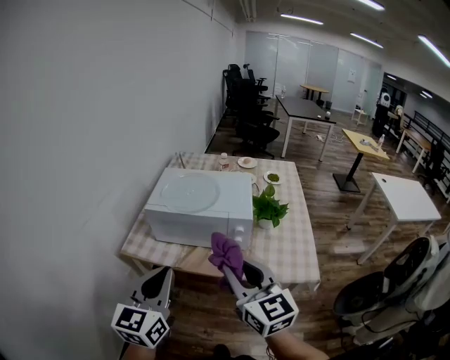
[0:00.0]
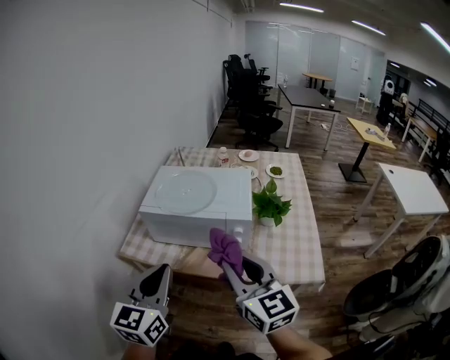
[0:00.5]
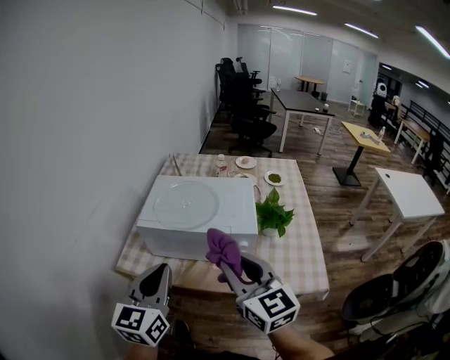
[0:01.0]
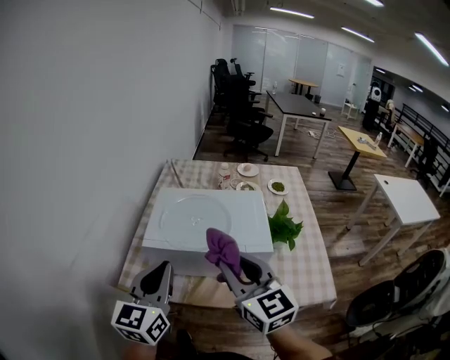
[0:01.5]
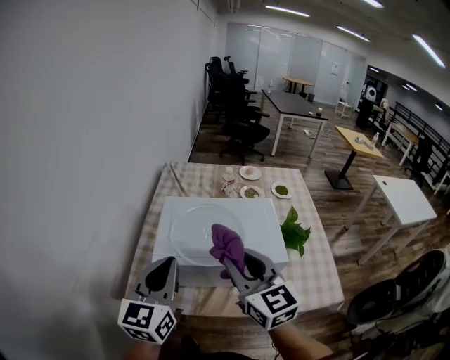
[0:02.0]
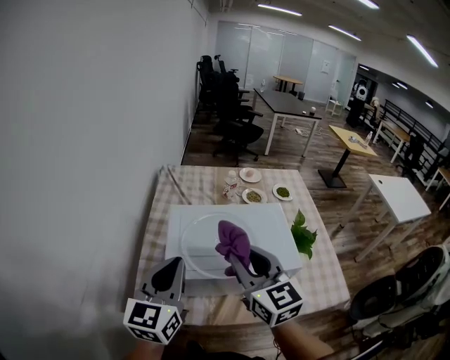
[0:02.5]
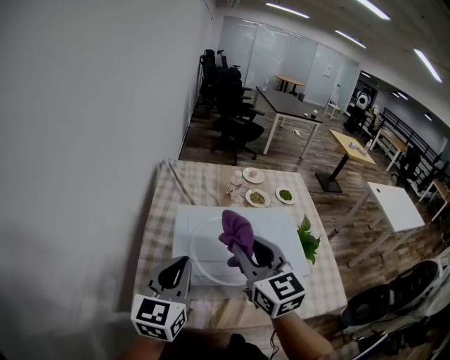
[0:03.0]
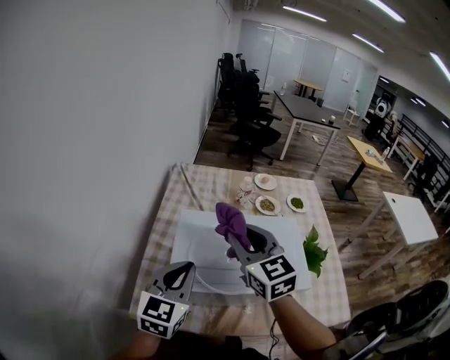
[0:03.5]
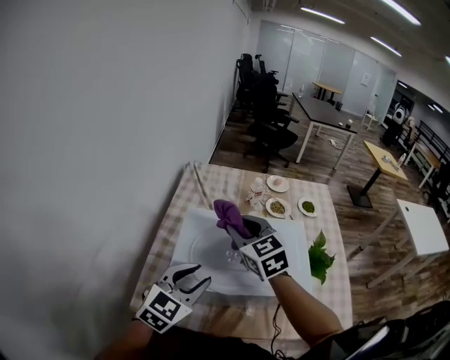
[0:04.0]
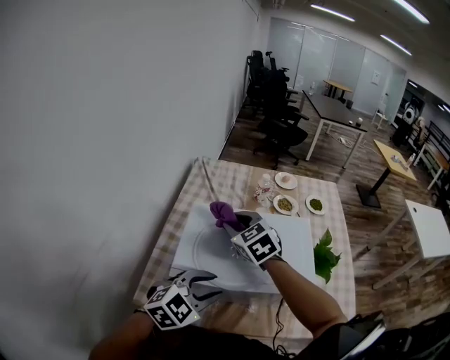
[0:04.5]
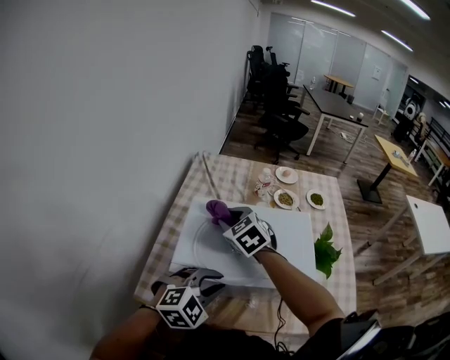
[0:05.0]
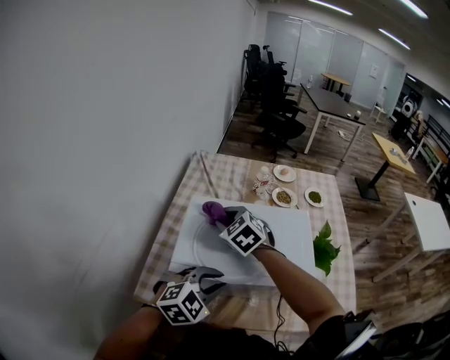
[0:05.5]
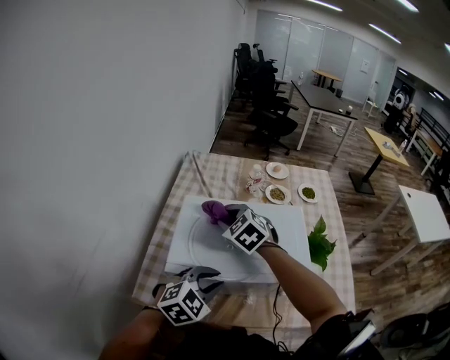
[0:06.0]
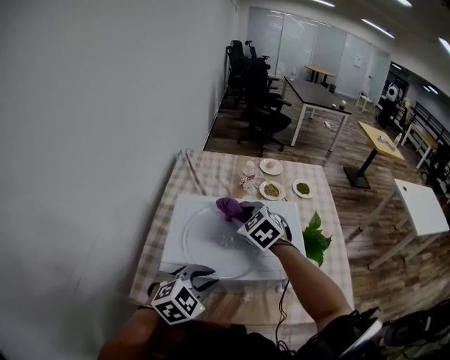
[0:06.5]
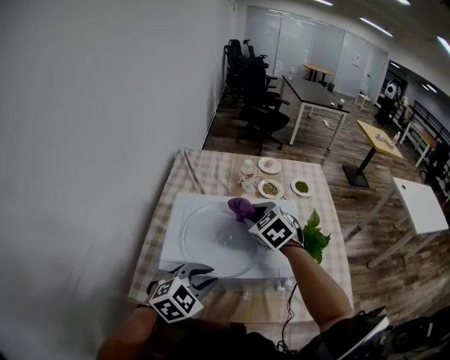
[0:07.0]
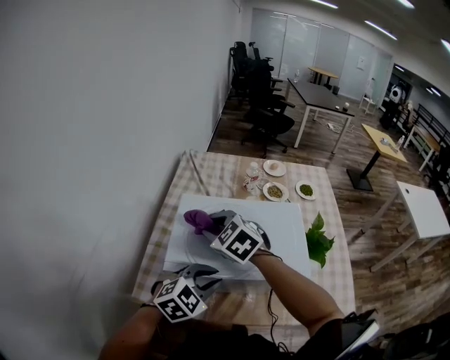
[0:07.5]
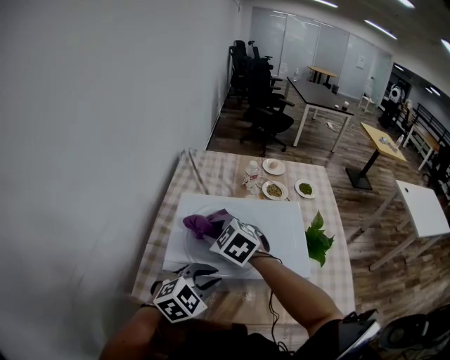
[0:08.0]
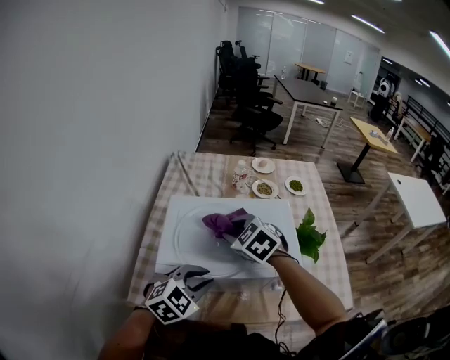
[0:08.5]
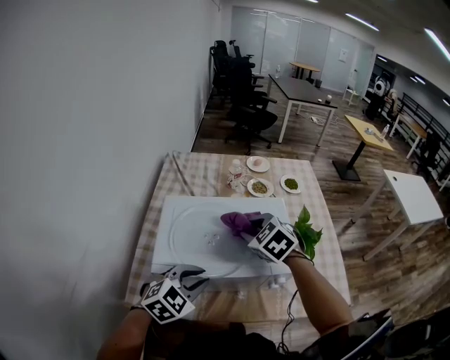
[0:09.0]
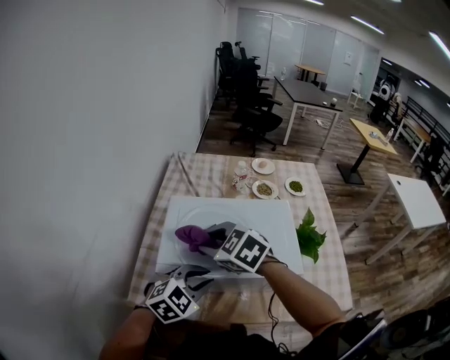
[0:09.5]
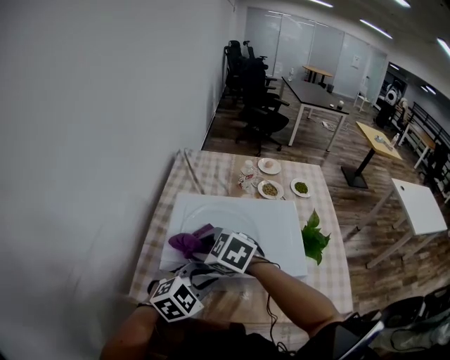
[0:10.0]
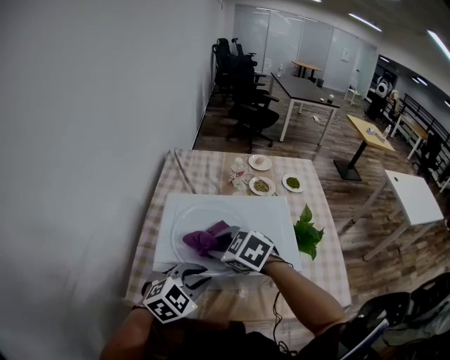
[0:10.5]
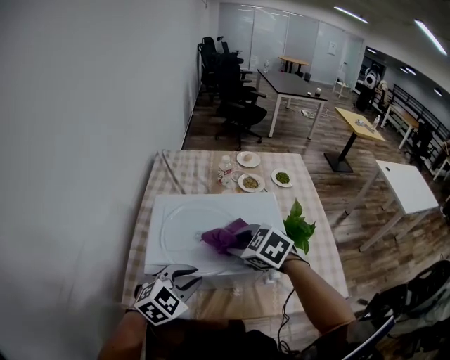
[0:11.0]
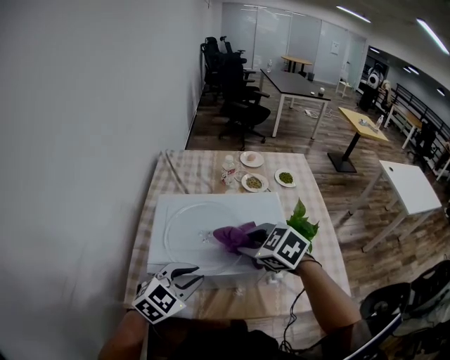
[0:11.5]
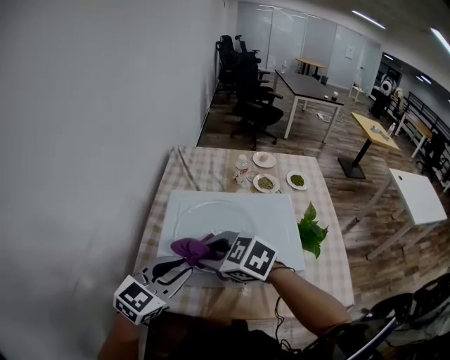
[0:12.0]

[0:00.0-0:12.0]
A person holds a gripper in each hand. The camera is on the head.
0:00.0 to 0:02.0: Both grippers move forward, some 25 cm.
0:02.0 to 0:04.0: The left gripper travels downward and forward by some 15 cm, turns by about 30 degrees, and opens; the right gripper is displaced forward by approximately 20 cm, and changes its angle by roughly 20 degrees.
0:04.0 to 0:06.0: The left gripper travels downward and to the right by some 10 cm, and rotates some 20 degrees; the right gripper goes some 10 cm downward, and changes its angle by approximately 30 degrees.
0:06.0 to 0:08.0: The right gripper is displaced backward by roughly 5 cm, and goes to the right and returns, approximately 10 cm each way.
0:08.0 to 0:10.0: The right gripper moves backward, approximately 5 cm, and goes to the right and returns, roughly 15 cm each way.
0:10.0 to 0:12.0: The right gripper travels to the right and back again, roughly 15 cm each way. Meanwhile the left gripper is displaced upward and to the left by some 10 cm, and changes its angle by approximately 30 degrees.

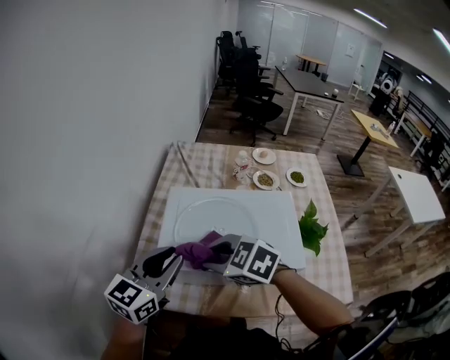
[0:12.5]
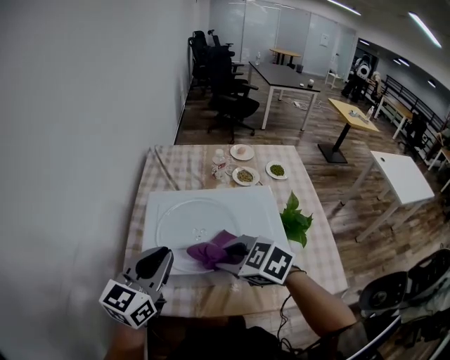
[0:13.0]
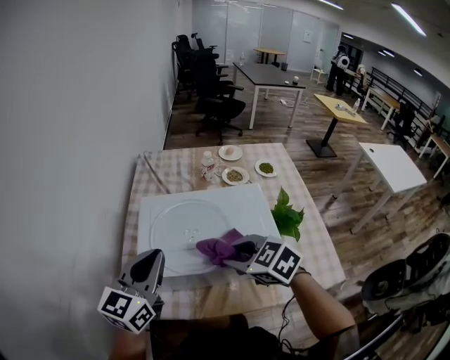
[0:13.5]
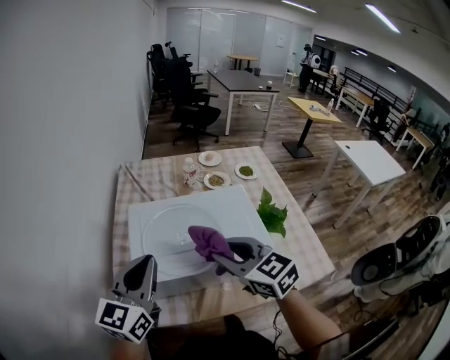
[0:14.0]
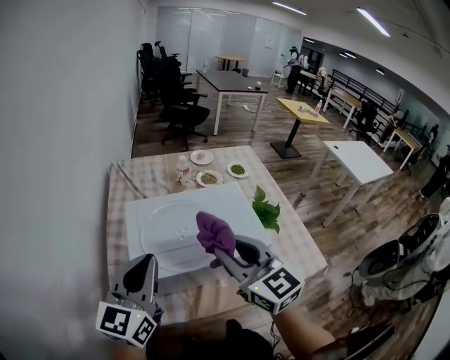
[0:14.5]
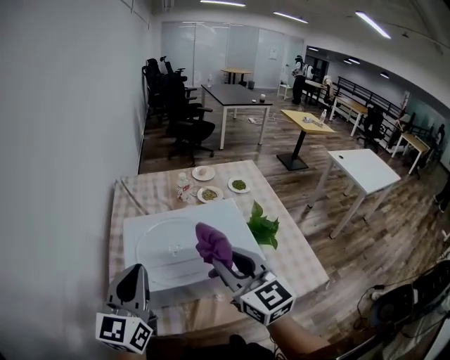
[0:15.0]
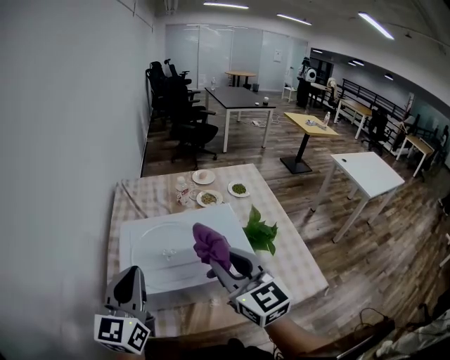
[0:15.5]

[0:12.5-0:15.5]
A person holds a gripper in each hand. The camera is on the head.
0:12.5 to 0:14.0: The right gripper moves to the right and upward, roughly 10 cm, and swivels about 40 degrees.
0:14.0 to 0:15.5: The right gripper travels upward and to the right by roughly 10 cm, and rotates some 20 degrees.

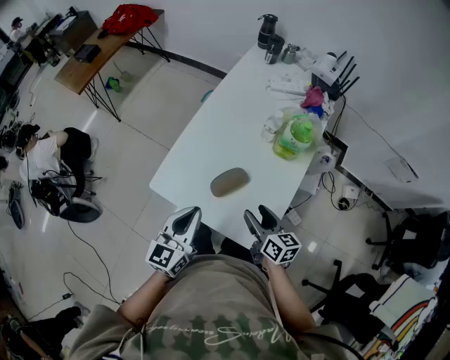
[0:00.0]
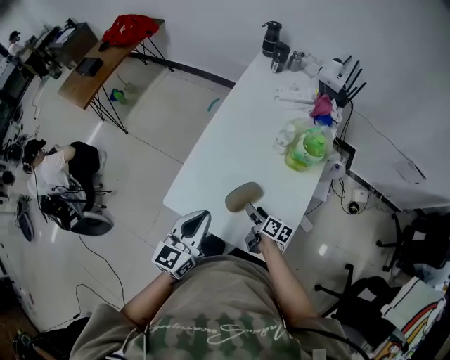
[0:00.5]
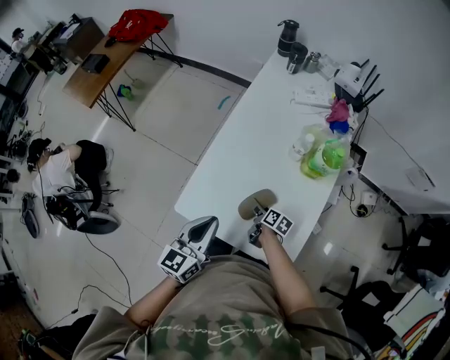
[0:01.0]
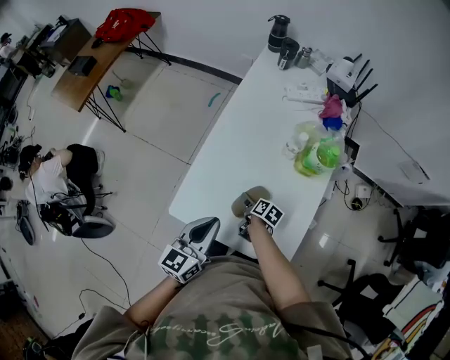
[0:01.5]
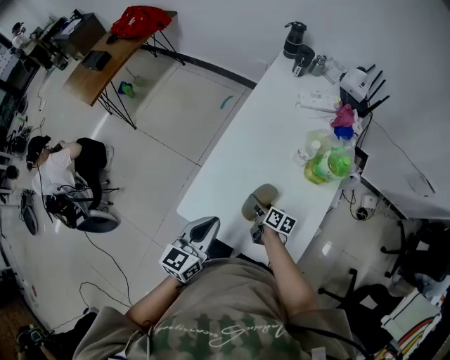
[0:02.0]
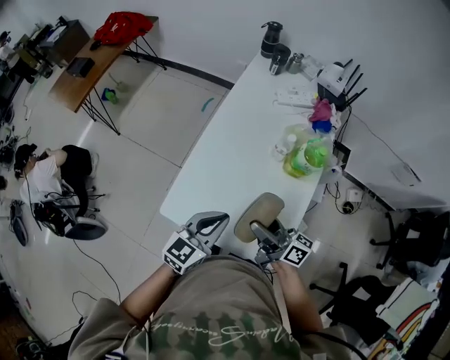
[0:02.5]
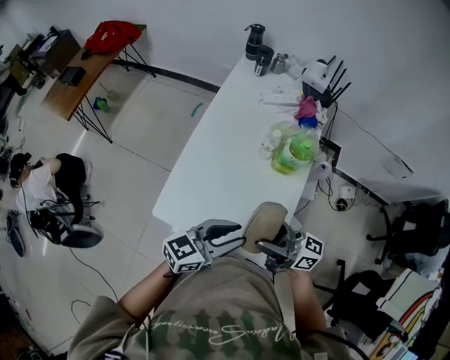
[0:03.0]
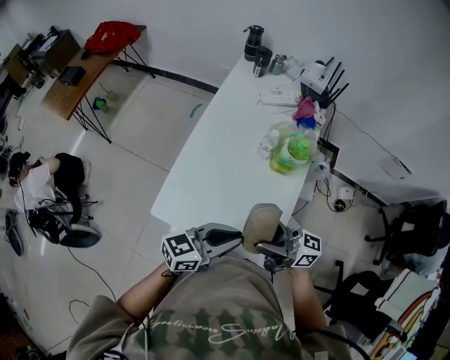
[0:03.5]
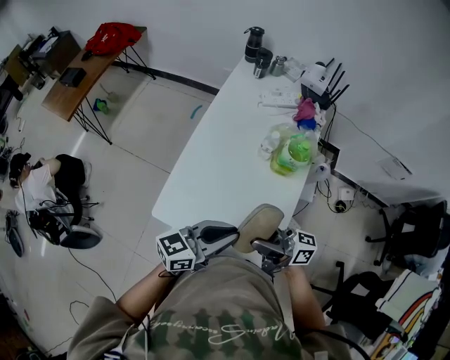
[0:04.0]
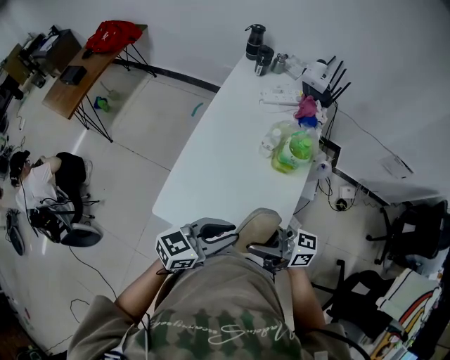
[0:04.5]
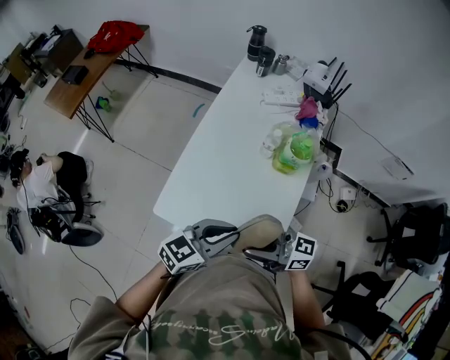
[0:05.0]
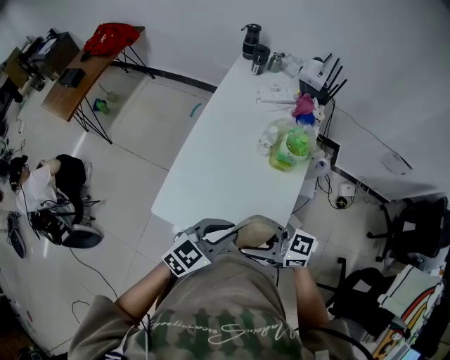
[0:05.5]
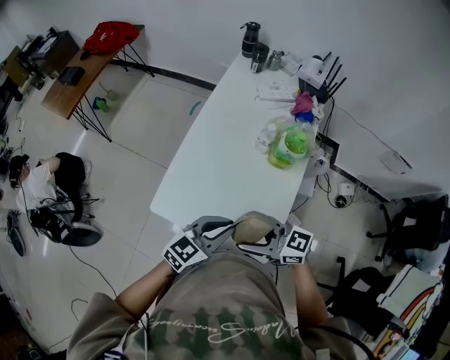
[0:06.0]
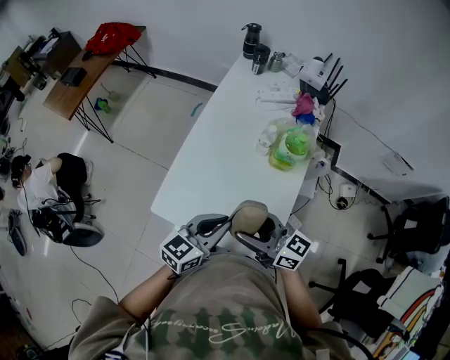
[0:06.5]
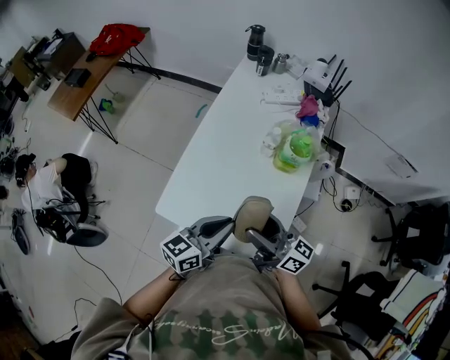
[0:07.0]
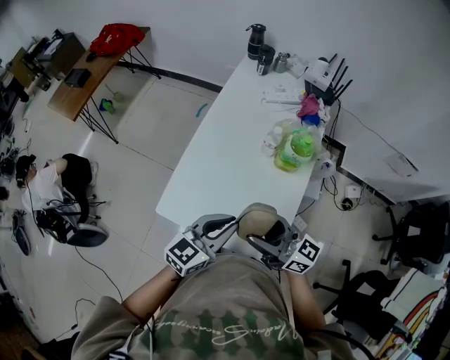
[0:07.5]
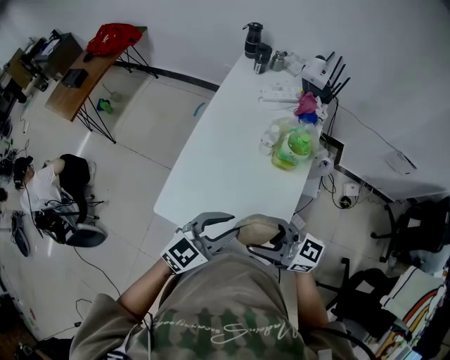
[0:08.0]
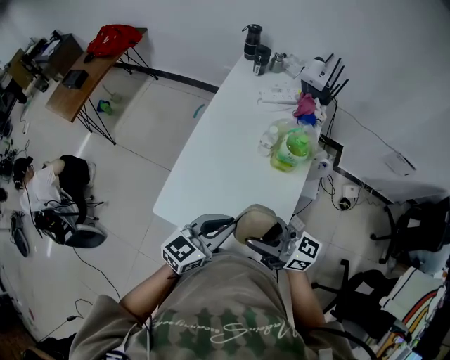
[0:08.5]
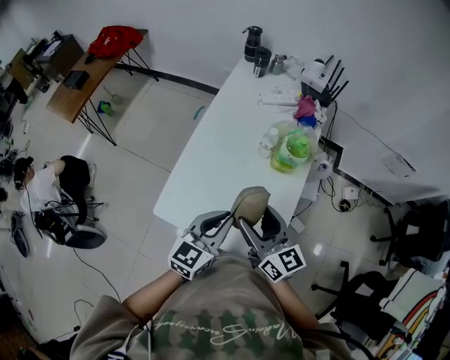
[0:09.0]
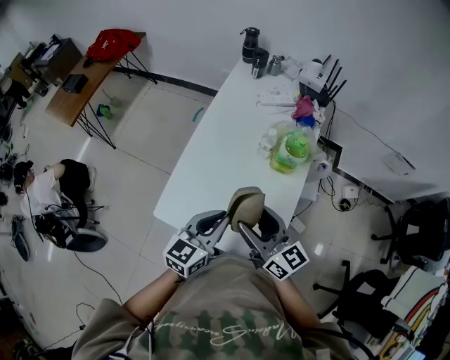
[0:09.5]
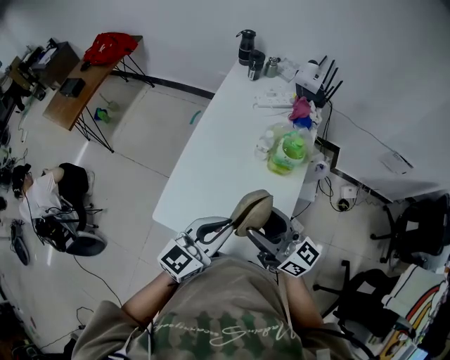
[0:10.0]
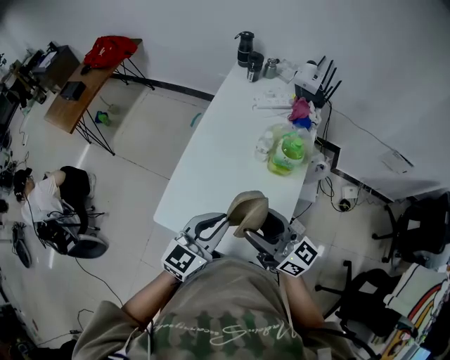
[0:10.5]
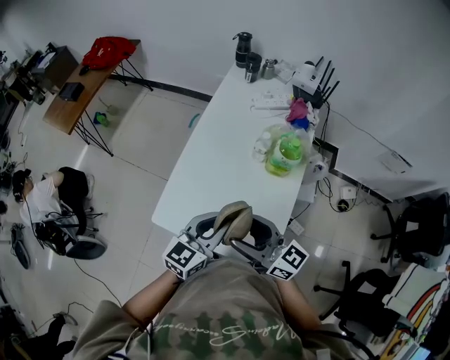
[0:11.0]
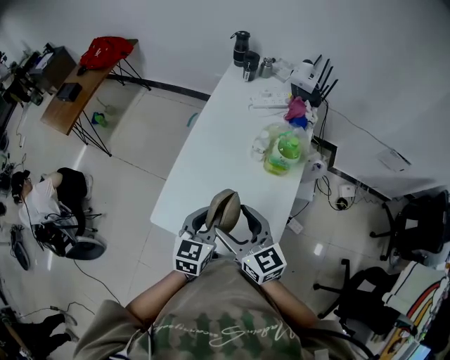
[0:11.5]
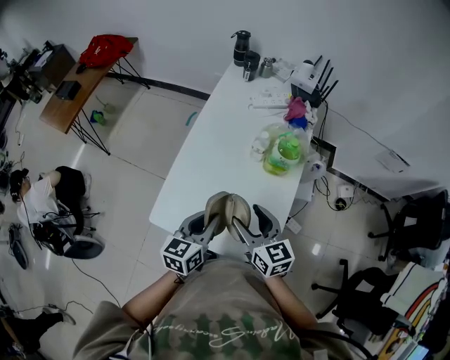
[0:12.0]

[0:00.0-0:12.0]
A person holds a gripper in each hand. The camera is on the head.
0:00.0 to 0:02.0: The right gripper moves forward, downward and to the left, about 25 cm, and rotates roughly 30 degrees; the left gripper goes some 10 cm forward and to the left.
0:02.0 to 0:04.0: The right gripper moves upward, roughly 30 cm, and tips its fingers upward by roughly 50 degrees. Meanwhile the left gripper changes place by roughly 15 cm, and rotates about 40 degrees.
0:04.0 to 0:06.0: The right gripper moves approximately 5 cm, and changes its angle by about 40 degrees. Meanwhile the left gripper travels downward by roughly 5 cm, and turns by approximately 20 degrees.
0:08.0 to 0:10.0: The right gripper shifts by approximately 5 cm, and swivels approximately 20 degrees.
0:10.0 to 0:12.0: The two grippers go some 10 cm downward. The right gripper rotates some 30 degrees; the left gripper changes its angle by approximately 30 degrees.
